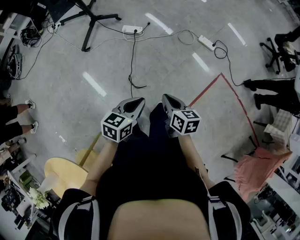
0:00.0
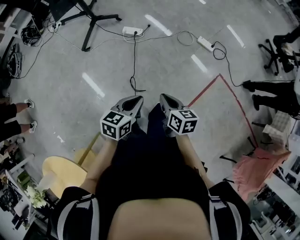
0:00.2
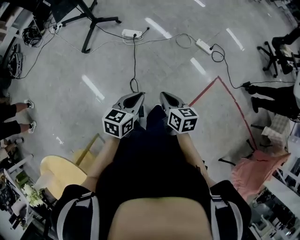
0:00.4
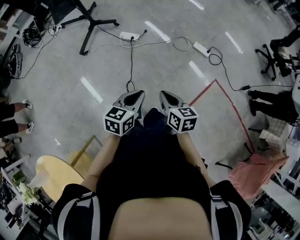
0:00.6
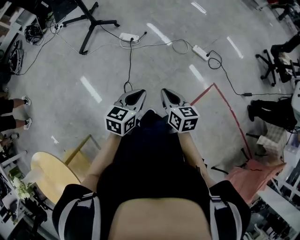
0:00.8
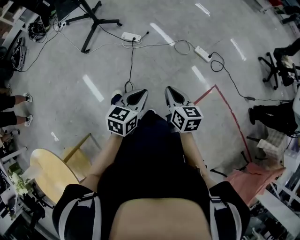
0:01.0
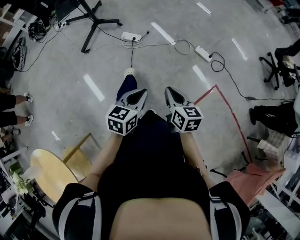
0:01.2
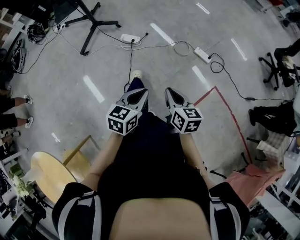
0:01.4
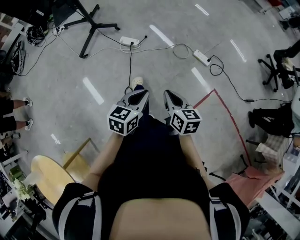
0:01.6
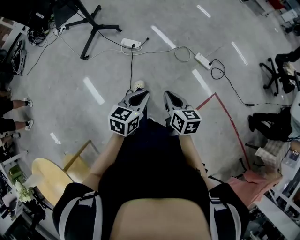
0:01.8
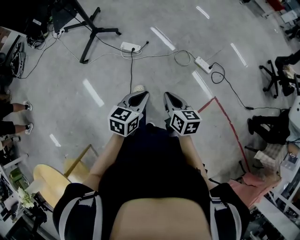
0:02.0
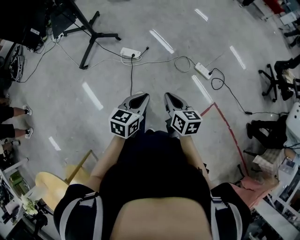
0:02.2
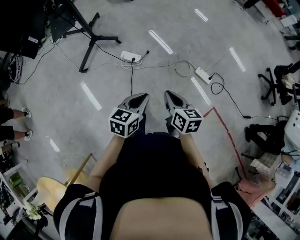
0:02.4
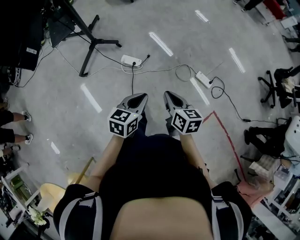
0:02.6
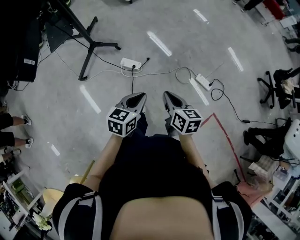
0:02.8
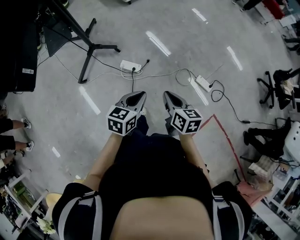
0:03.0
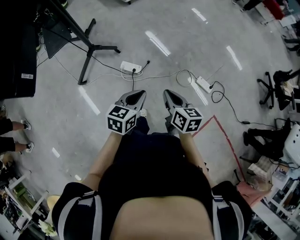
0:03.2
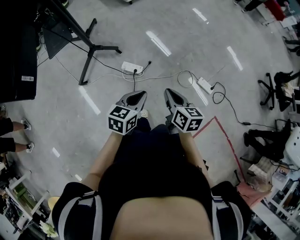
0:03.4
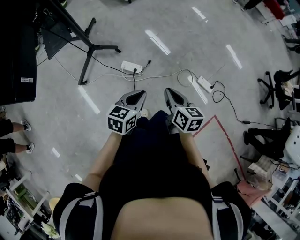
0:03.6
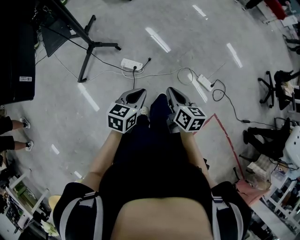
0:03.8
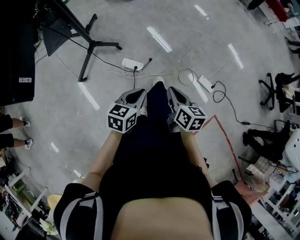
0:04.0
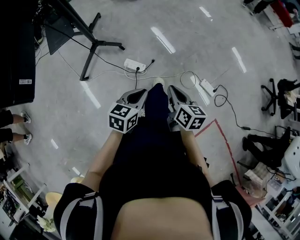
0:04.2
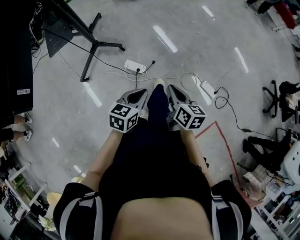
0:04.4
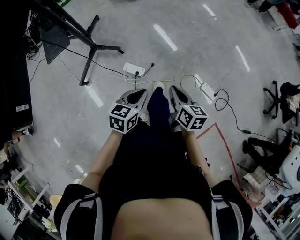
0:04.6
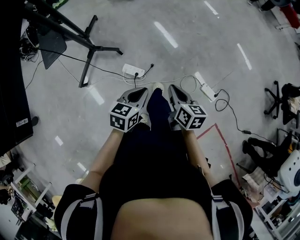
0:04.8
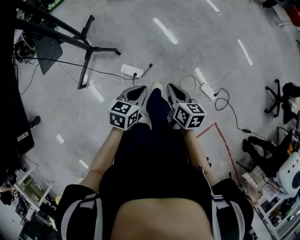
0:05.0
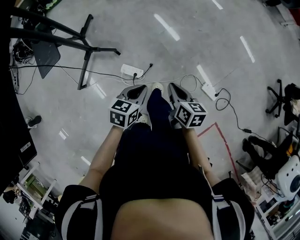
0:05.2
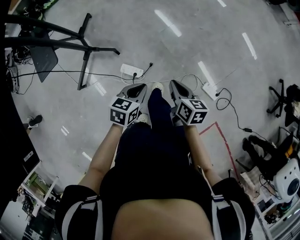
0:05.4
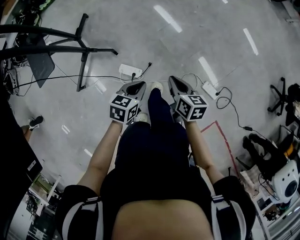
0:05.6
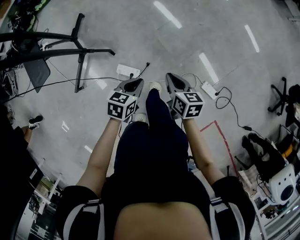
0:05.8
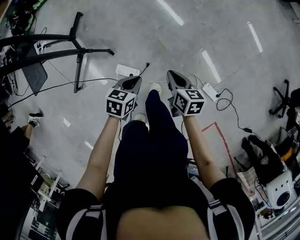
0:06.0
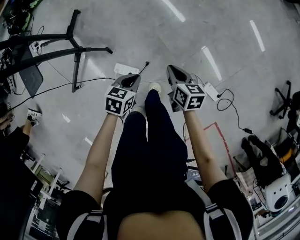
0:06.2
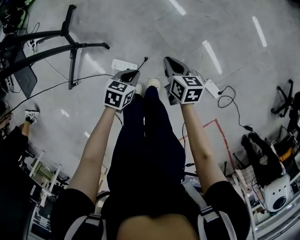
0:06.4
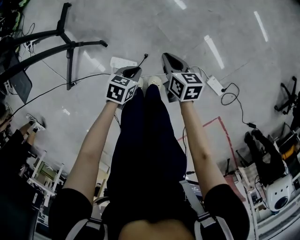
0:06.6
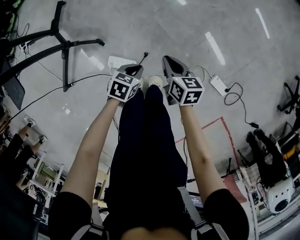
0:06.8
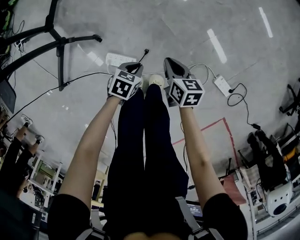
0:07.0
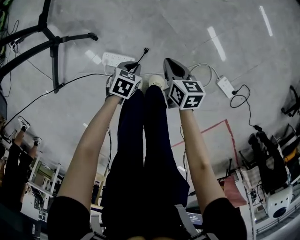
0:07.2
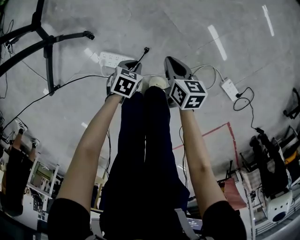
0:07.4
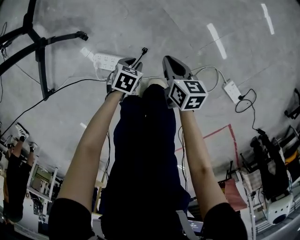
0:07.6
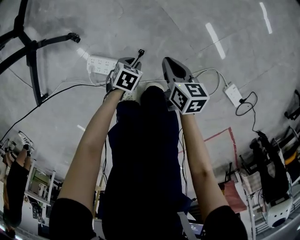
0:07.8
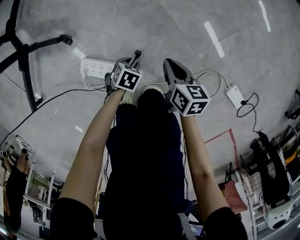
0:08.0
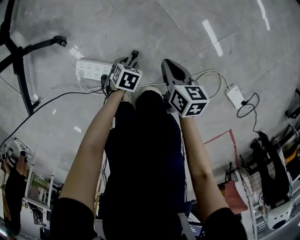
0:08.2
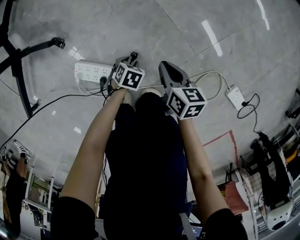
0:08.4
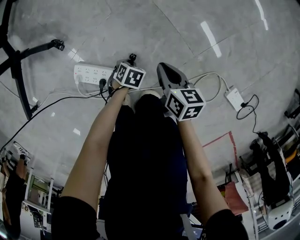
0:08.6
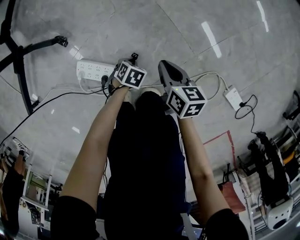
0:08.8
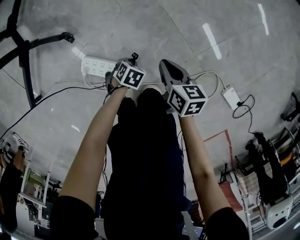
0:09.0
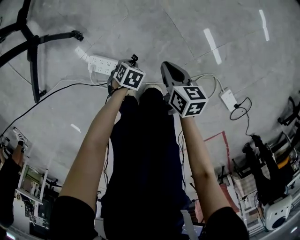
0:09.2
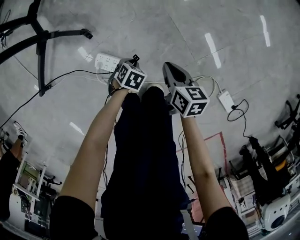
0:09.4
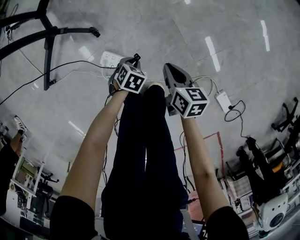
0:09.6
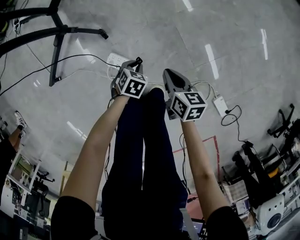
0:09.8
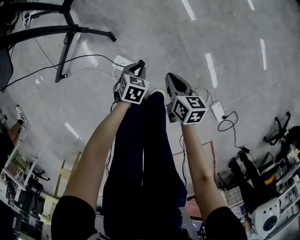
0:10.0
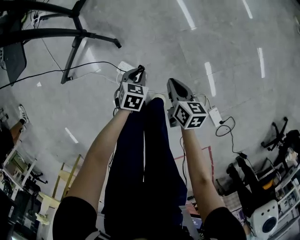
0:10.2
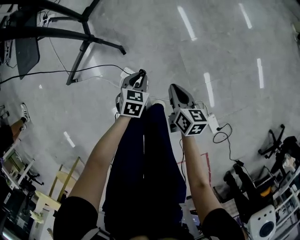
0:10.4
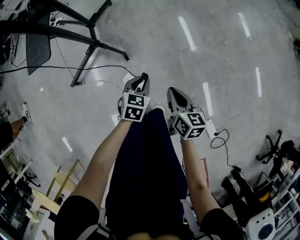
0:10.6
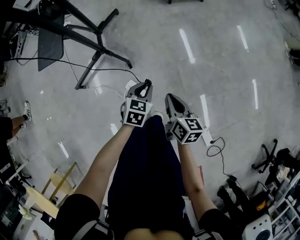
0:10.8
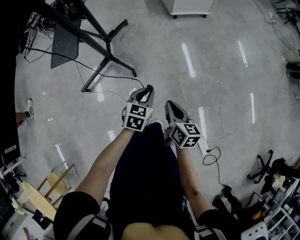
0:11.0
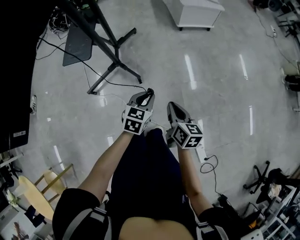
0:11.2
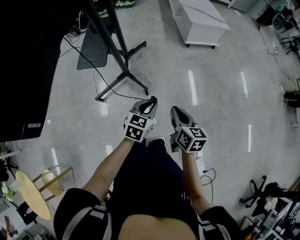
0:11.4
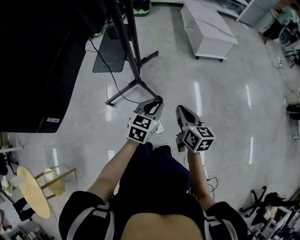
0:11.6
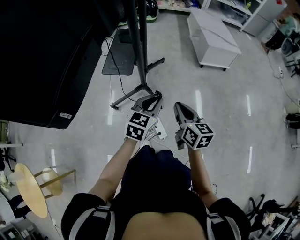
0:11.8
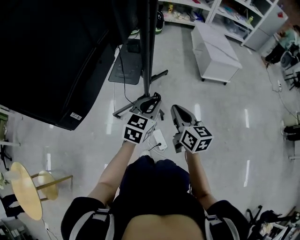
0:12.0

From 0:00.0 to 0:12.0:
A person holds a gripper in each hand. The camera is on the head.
From 0:00.0 to 0:01.6: Both grippers move to the right and forward, some 15 cm.
From 0:01.6 to 0:03.0: Both grippers move forward, approximately 30 cm.
From 0:03.0 to 0:04.4: Both grippers travel together forward, some 10 cm.
From 0:04.4 to 0:06.0: The grippers both shift forward by about 35 cm.
From 0:06.0 to 0:07.6: Both grippers move downward, about 50 cm. The left gripper swivels some 20 degrees.
From 0:07.6 to 0:09.0: The left gripper shifts about 15 cm downward, while the right gripper heads downward, covering some 5 cm.
From 0:09.0 to 0:10.4: Both grippers move upward, approximately 40 cm. The left gripper swivels about 40 degrees.
From 0:10.4 to 0:12.0: Both grippers travel together upward and to the left, about 50 cm. The right gripper turns by approximately 40 degrees. The left gripper tips its fingers upward by about 30 degrees.

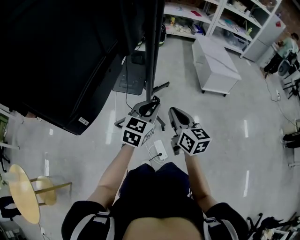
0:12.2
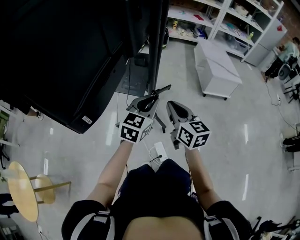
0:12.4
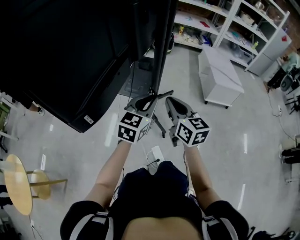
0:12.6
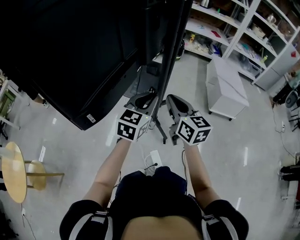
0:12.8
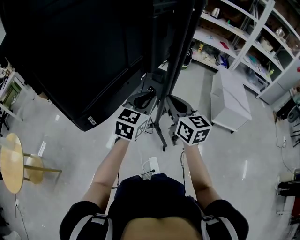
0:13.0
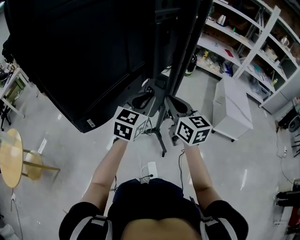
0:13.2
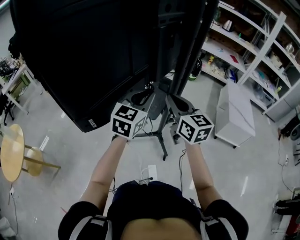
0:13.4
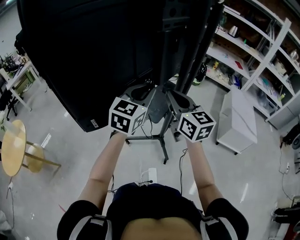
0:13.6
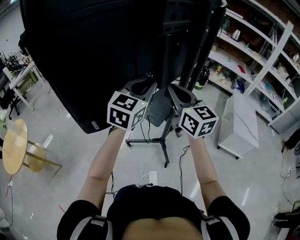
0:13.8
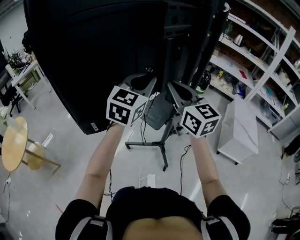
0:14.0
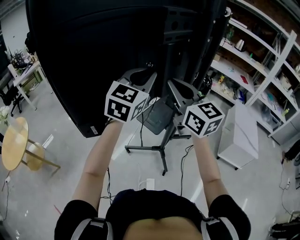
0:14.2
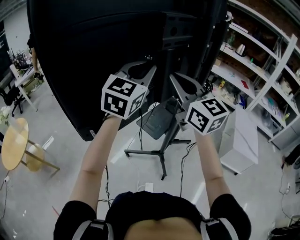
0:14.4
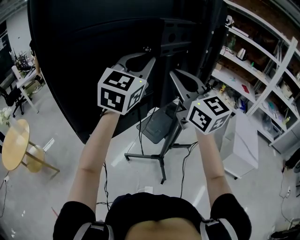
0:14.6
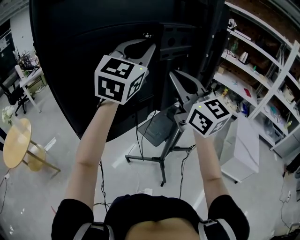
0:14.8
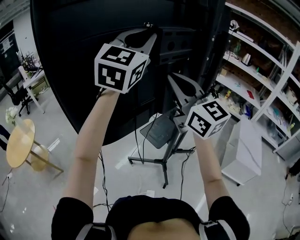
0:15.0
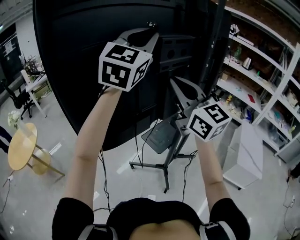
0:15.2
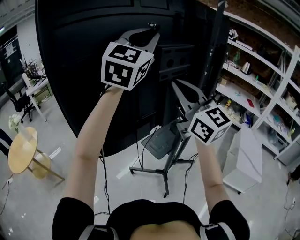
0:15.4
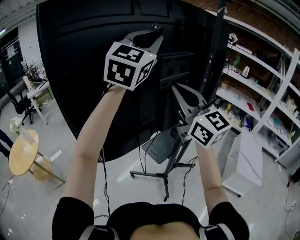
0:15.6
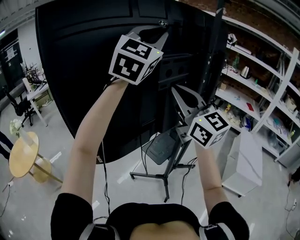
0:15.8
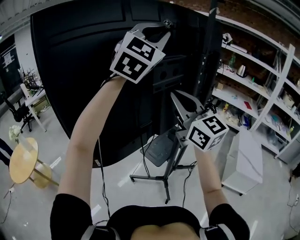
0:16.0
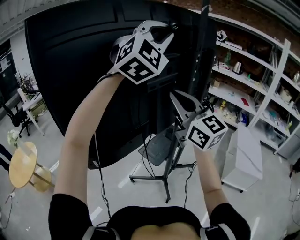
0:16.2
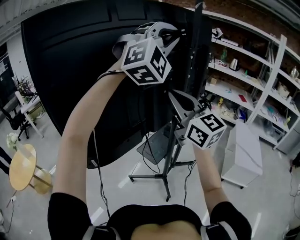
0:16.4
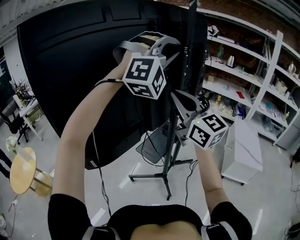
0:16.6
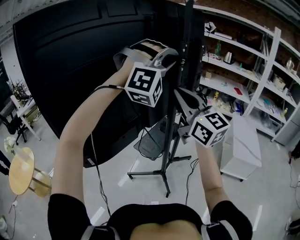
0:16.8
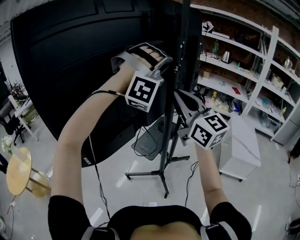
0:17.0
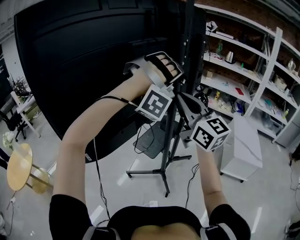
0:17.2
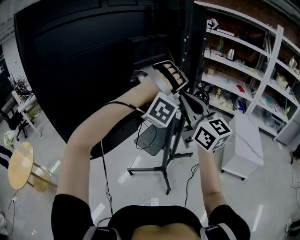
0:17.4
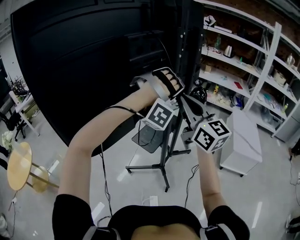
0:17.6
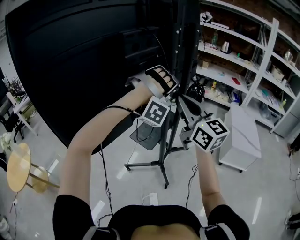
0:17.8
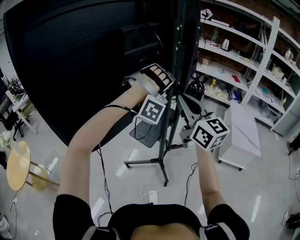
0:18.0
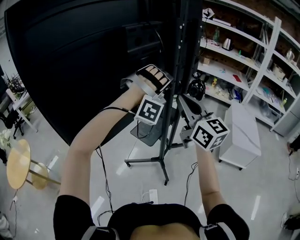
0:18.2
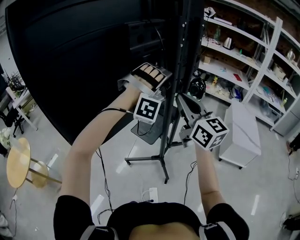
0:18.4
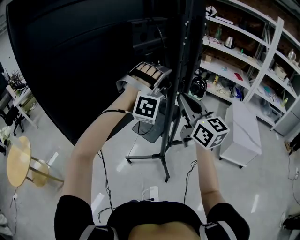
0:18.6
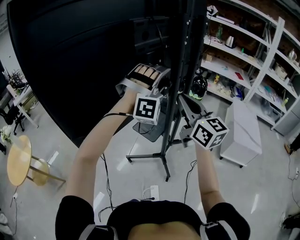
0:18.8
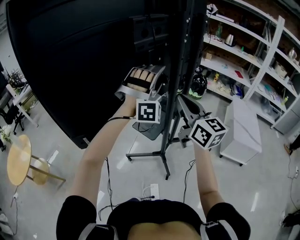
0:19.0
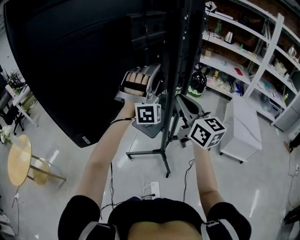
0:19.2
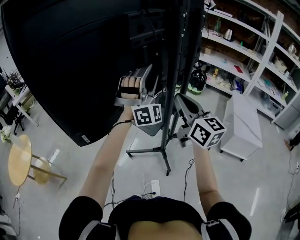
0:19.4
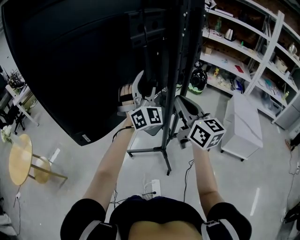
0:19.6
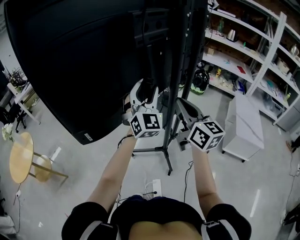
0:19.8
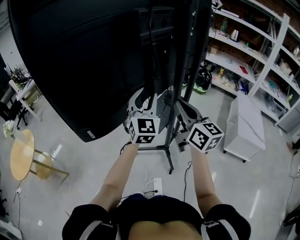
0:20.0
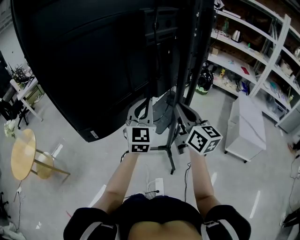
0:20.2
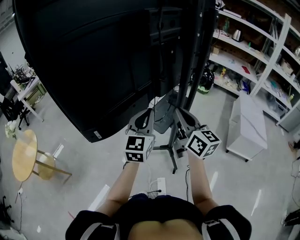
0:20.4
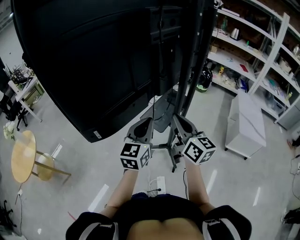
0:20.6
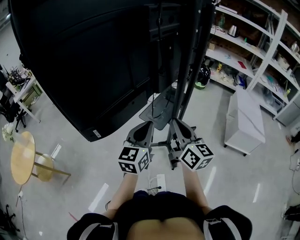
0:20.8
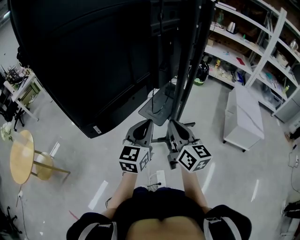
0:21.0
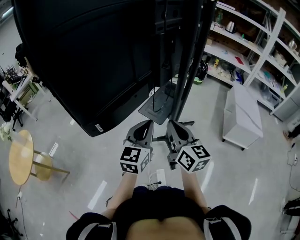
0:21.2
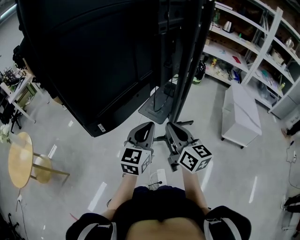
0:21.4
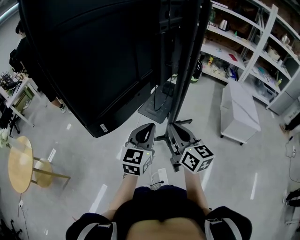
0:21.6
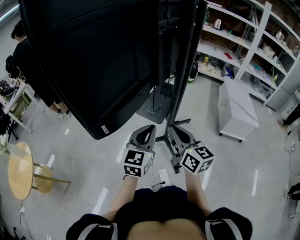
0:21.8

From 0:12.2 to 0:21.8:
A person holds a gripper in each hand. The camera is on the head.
From 0:12.2 to 0:13.8: The grippers both shift upward by approximately 20 cm. The left gripper changes its angle by approximately 30 degrees. Meanwhile the right gripper swivels approximately 40 degrees.
From 0:13.8 to 0:15.4: The left gripper is displaced upward by about 30 cm, and changes its angle by approximately 30 degrees. The right gripper travels upward by about 20 cm, and swivels roughly 20 degrees.
From 0:15.4 to 0:17.0: The right gripper is displaced to the right by roughly 10 cm, while the left gripper shifts approximately 20 cm to the right and downward, and twists about 90 degrees clockwise, seen from behind.
From 0:17.0 to 0:18.6: The left gripper travels downward by about 15 cm, and opens. Meanwhile the right gripper goes roughly 10 cm downward.
From 0:18.6 to 0:20.2: The right gripper heads downward, covering approximately 10 cm, while the left gripper goes some 15 cm to the left, downward and backward, rotates around the line of its fingers by some 90 degrees, counterclockwise from behind, and closes.
From 0:20.2 to 0:21.8: The right gripper goes roughly 15 cm backward, downward and to the left; the left gripper travels backward and downward by some 15 cm, and changes its angle by some 30 degrees.

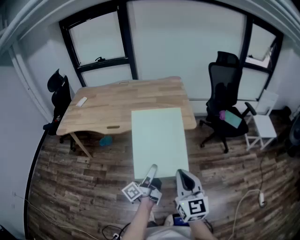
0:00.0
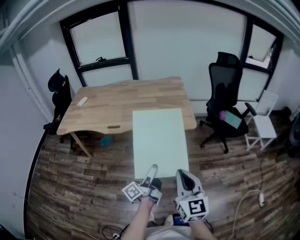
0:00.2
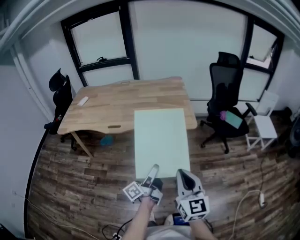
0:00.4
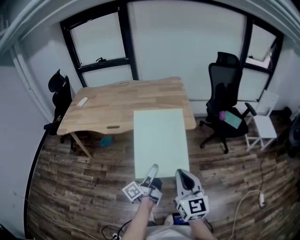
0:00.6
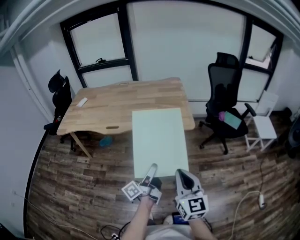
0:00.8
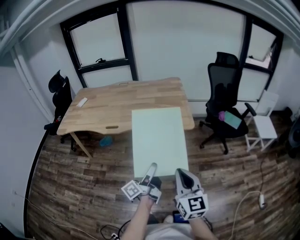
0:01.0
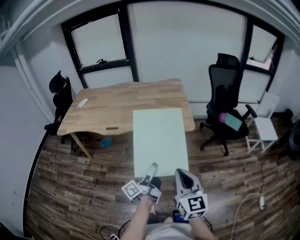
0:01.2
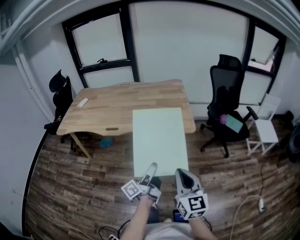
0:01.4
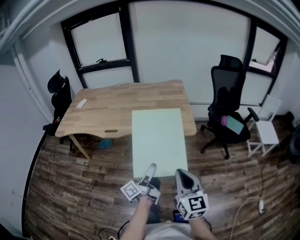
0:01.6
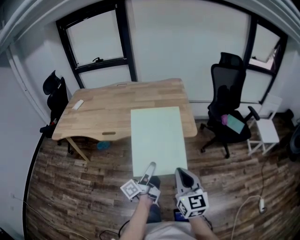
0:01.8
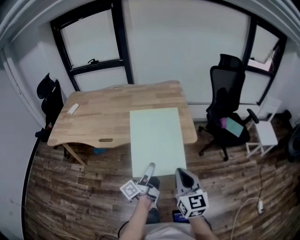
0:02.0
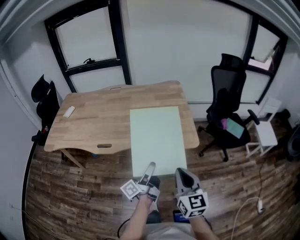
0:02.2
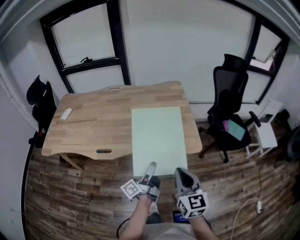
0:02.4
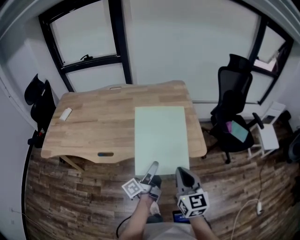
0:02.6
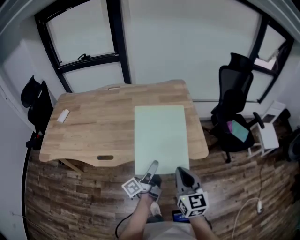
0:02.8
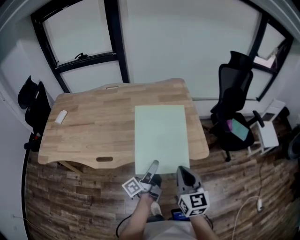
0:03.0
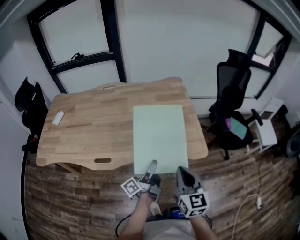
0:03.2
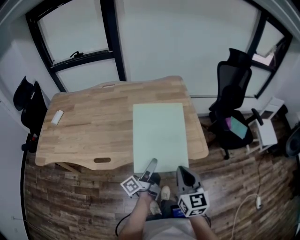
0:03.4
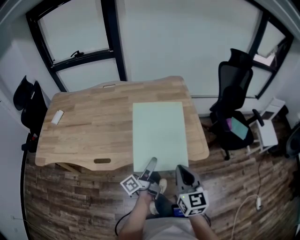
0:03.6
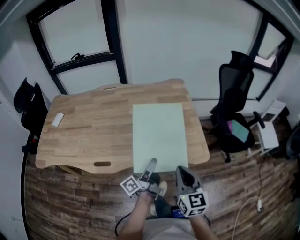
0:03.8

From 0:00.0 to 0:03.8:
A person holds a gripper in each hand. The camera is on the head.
From 0:01.2 to 0:02.6: The right gripper shifts by some 30 cm.
From 0:02.6 to 0:03.8: The right gripper moves about 10 cm.
